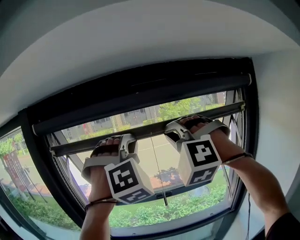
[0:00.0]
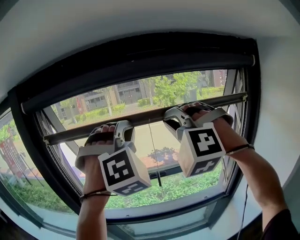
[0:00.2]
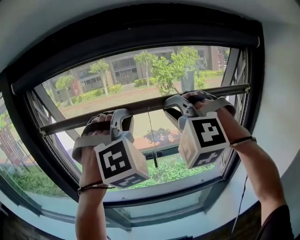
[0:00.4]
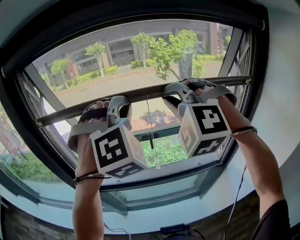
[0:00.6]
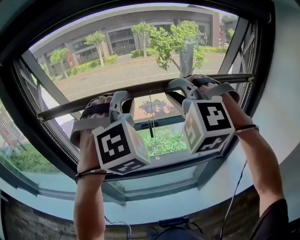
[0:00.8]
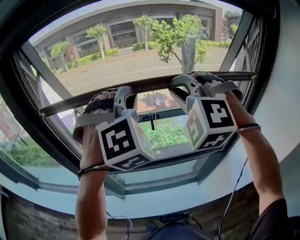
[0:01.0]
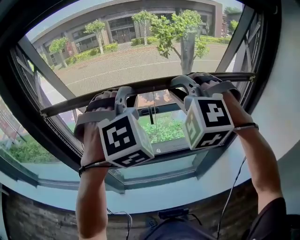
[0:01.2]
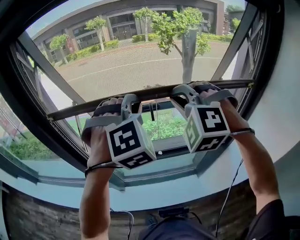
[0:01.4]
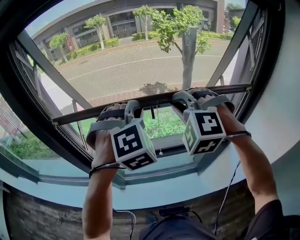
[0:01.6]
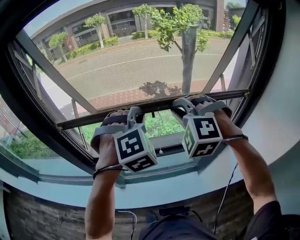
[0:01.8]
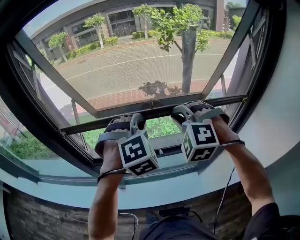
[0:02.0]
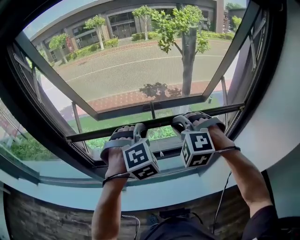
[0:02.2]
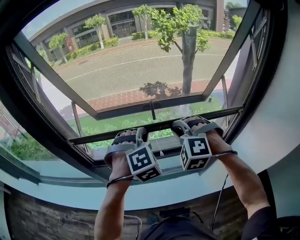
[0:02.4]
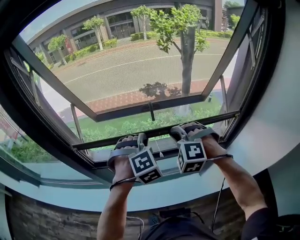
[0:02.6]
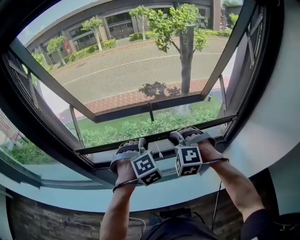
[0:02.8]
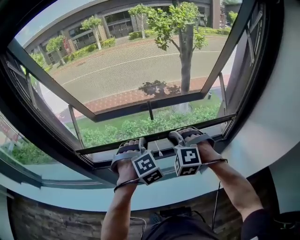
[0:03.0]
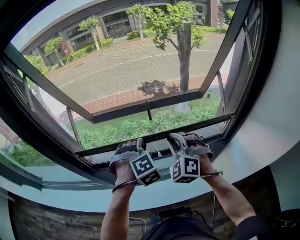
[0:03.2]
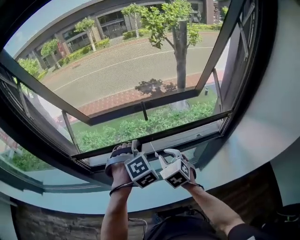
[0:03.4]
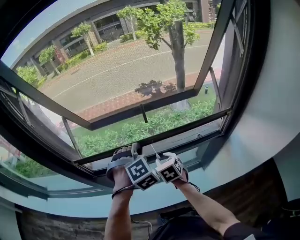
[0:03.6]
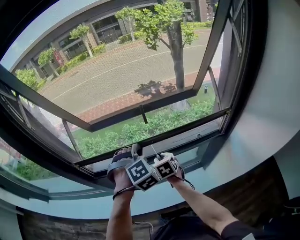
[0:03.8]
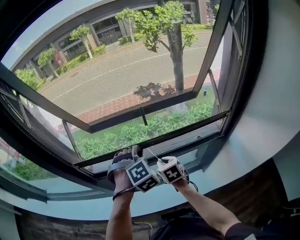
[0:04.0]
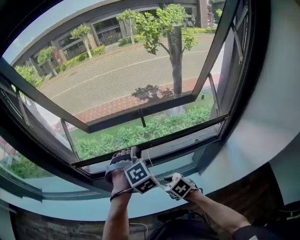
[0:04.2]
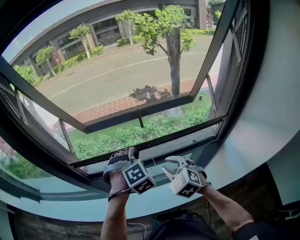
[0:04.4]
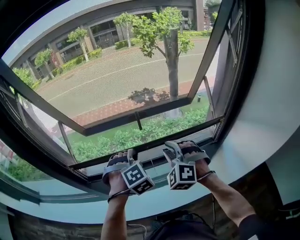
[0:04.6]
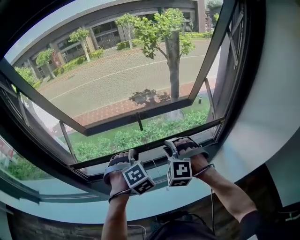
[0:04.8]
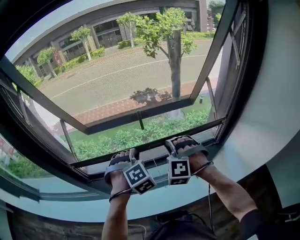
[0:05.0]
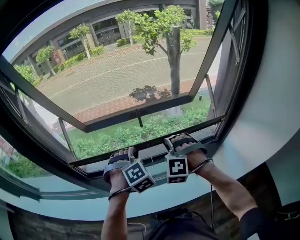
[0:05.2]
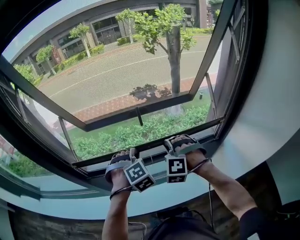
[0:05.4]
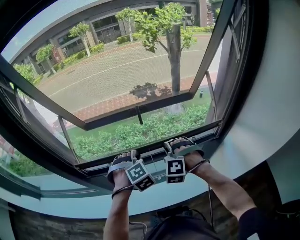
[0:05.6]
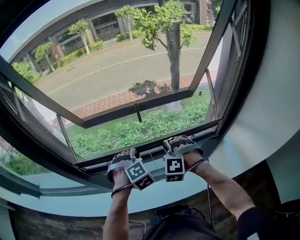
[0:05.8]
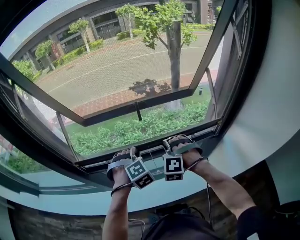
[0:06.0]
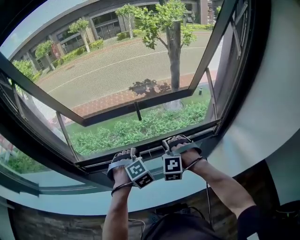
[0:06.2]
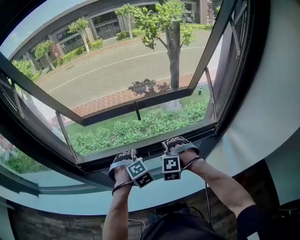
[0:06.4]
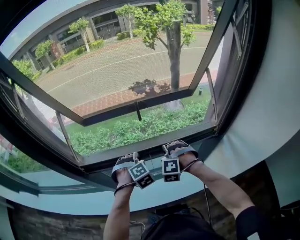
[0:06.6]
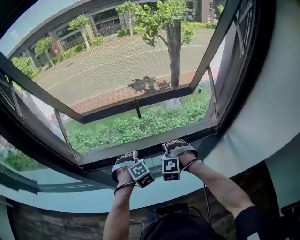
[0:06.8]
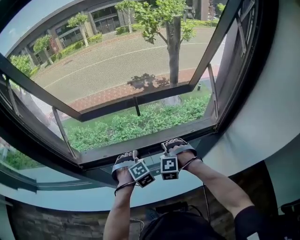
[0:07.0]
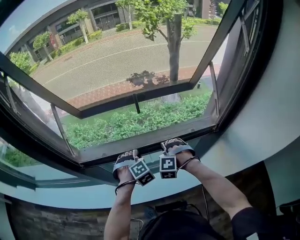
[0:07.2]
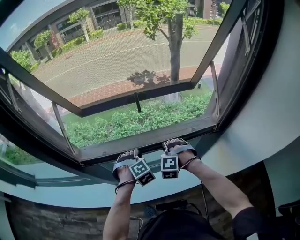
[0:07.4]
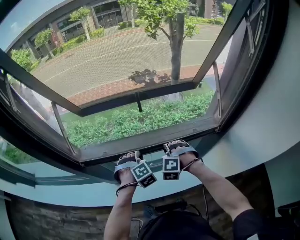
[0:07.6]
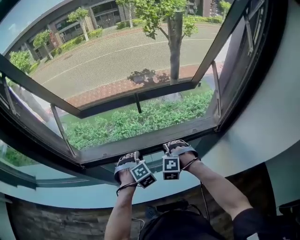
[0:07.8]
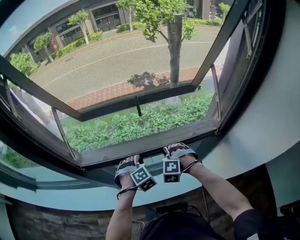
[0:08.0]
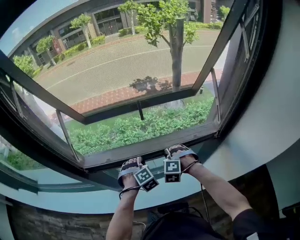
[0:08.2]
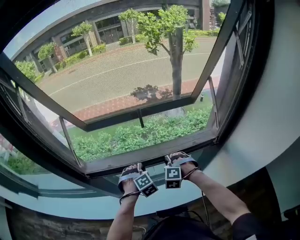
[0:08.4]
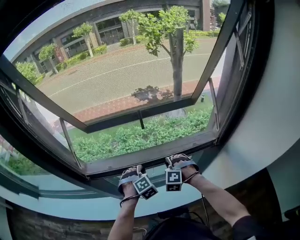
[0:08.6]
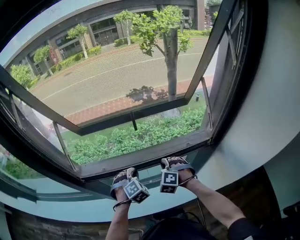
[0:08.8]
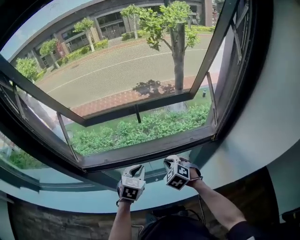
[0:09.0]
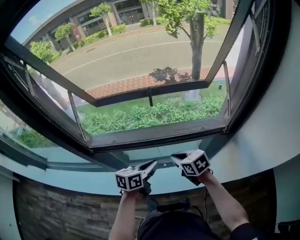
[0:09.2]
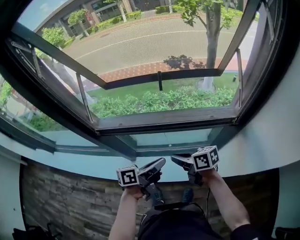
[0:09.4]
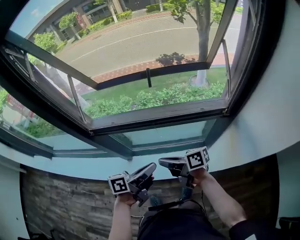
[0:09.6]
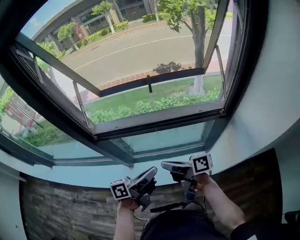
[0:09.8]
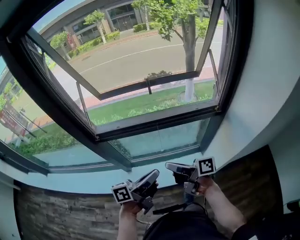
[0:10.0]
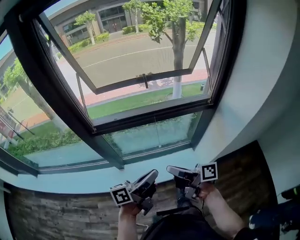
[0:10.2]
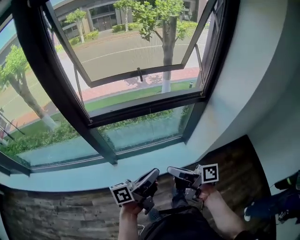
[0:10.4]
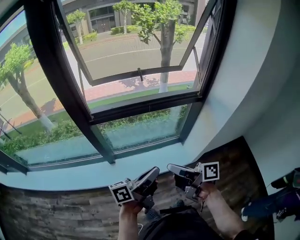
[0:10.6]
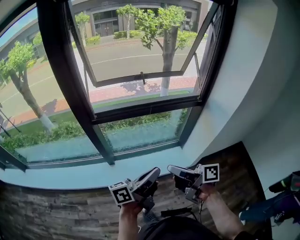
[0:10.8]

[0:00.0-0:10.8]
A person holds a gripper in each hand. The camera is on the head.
0:00.0 to 0:01.6: The grippers both shift downward by about 30 cm. The left gripper changes its angle by roughly 30 degrees, while the right gripper changes its angle by some 30 degrees.
0:01.6 to 0:03.0: Both grippers travel together downward, about 20 cm.
0:03.0 to 0:04.6: The right gripper moves roughly 15 cm downward and comes back, and opens its fingers.
0:04.6 to 0:06.2: Both grippers move downward, about 10 cm. The right gripper swivels roughly 20 degrees, and closes.
0:06.2 to 0:07.8: The two grippers go about 10 cm downward.
0:07.8 to 0:09.2: The left gripper heads backward and upward, covering roughly 10 cm, and twists some 80 degrees counterclockwise, seen from behind. Meanwhile the right gripper travels backward by some 5 cm, and rotates around the line of its fingers by approximately 70 degrees, clockwise from behind.
0:09.2 to 0:10.8: Both grippers travel together backward, approximately 35 cm. The left gripper angles its fingers upward, by about 40 degrees. The right gripper angles its fingers upward, by about 40 degrees.

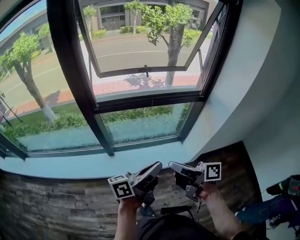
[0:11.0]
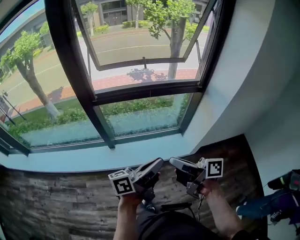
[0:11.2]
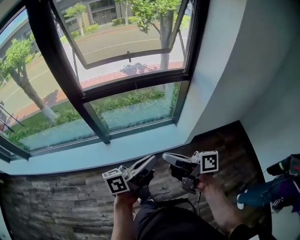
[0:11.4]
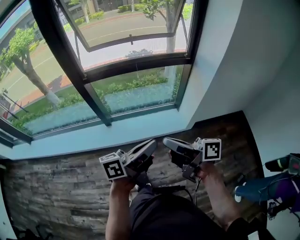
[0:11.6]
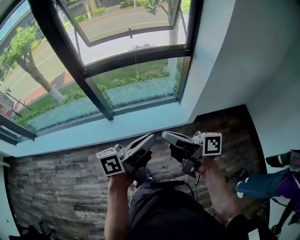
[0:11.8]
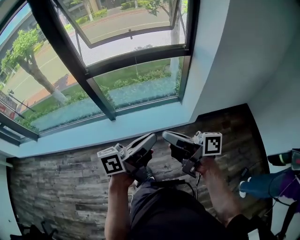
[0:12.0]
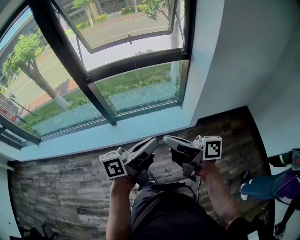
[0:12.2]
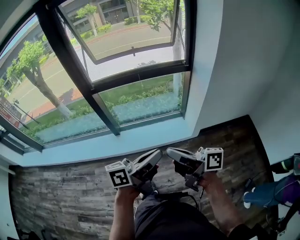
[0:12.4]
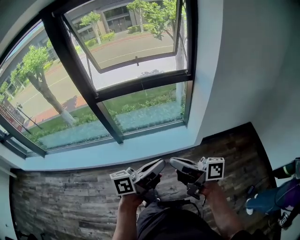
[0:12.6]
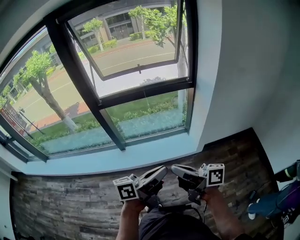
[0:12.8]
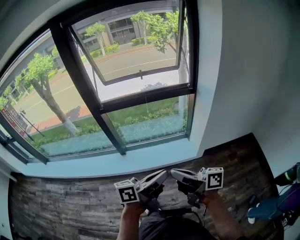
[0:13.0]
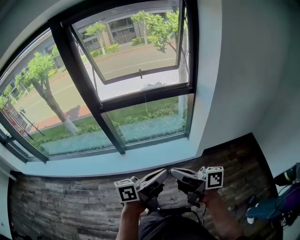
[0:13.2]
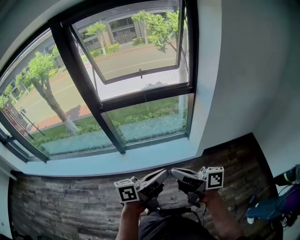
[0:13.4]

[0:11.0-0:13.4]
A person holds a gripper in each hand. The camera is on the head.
0:11.0 to 0:12.2: The two grippers go approximately 15 cm backward and to the right.
0:12.2 to 0:13.4: The grippers move only a little.

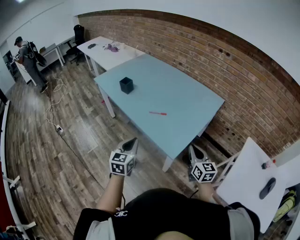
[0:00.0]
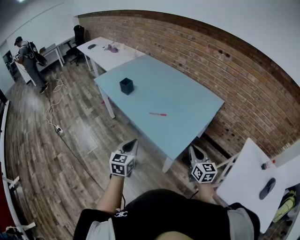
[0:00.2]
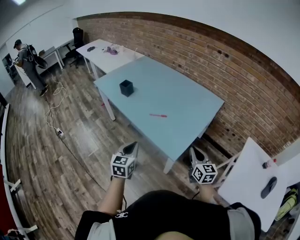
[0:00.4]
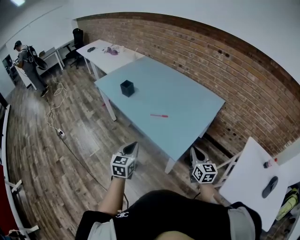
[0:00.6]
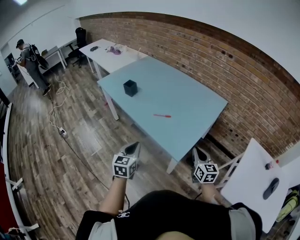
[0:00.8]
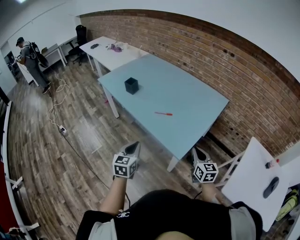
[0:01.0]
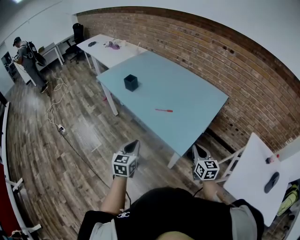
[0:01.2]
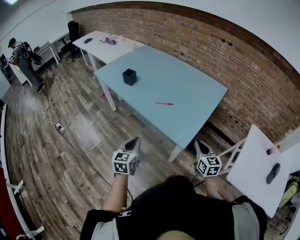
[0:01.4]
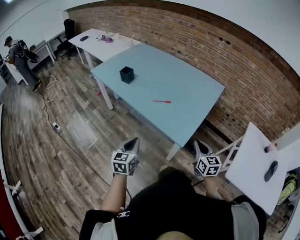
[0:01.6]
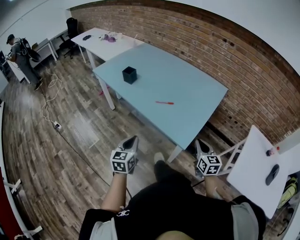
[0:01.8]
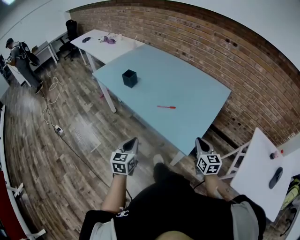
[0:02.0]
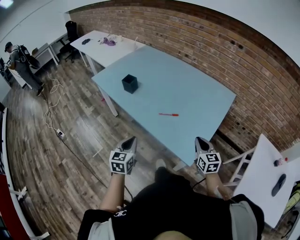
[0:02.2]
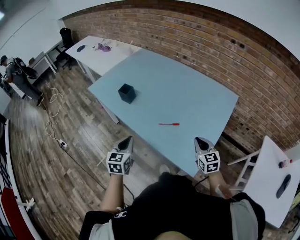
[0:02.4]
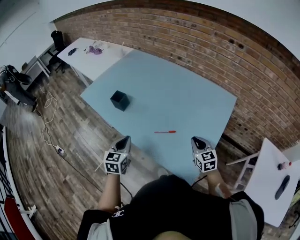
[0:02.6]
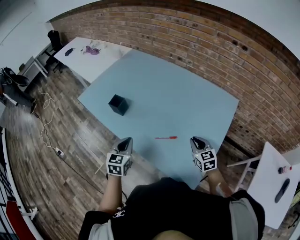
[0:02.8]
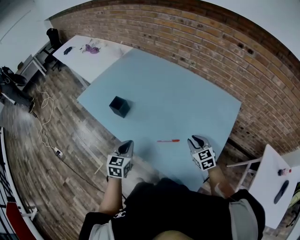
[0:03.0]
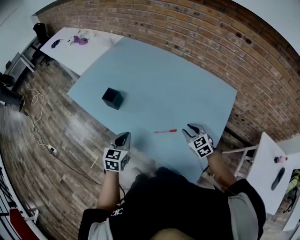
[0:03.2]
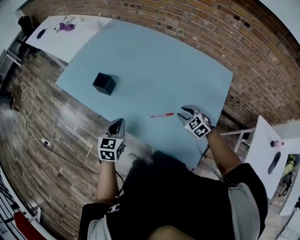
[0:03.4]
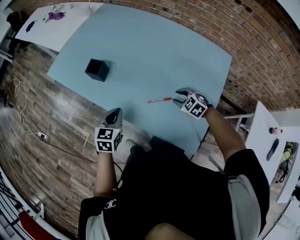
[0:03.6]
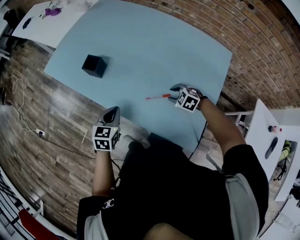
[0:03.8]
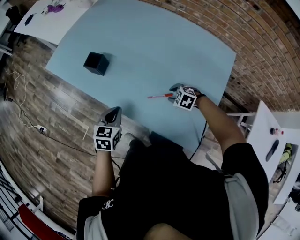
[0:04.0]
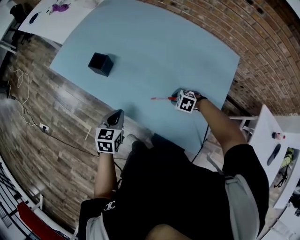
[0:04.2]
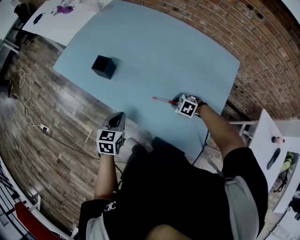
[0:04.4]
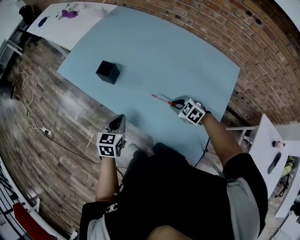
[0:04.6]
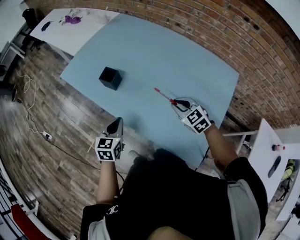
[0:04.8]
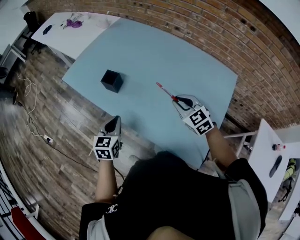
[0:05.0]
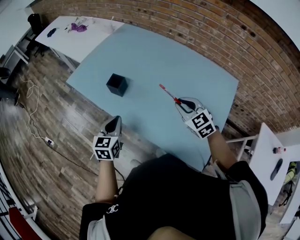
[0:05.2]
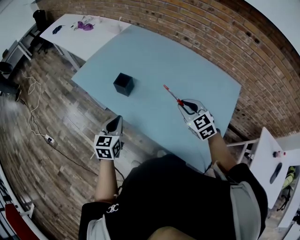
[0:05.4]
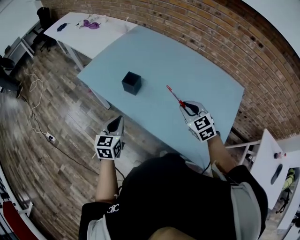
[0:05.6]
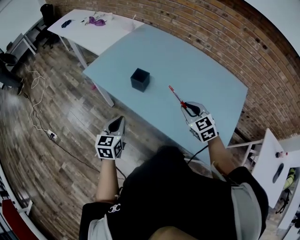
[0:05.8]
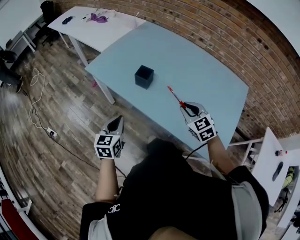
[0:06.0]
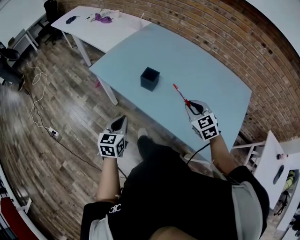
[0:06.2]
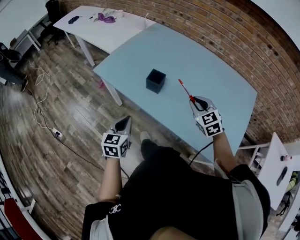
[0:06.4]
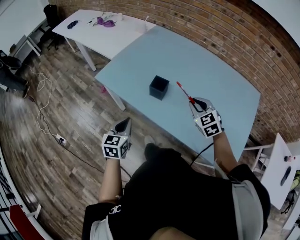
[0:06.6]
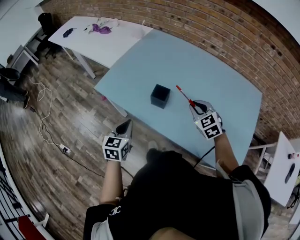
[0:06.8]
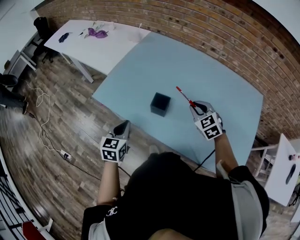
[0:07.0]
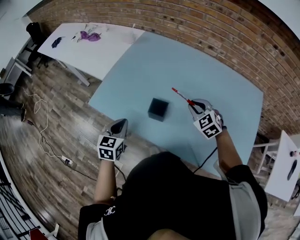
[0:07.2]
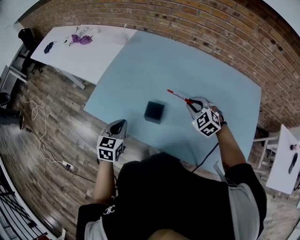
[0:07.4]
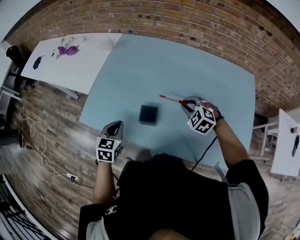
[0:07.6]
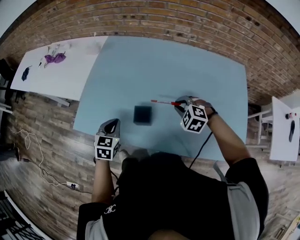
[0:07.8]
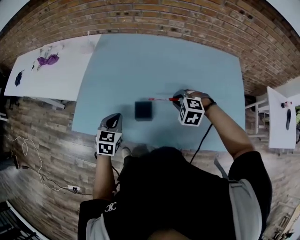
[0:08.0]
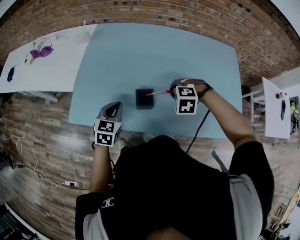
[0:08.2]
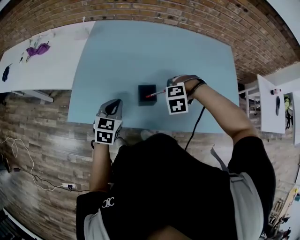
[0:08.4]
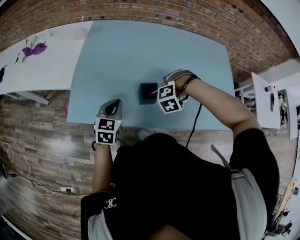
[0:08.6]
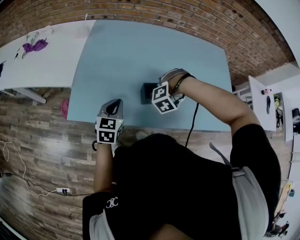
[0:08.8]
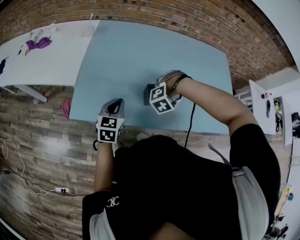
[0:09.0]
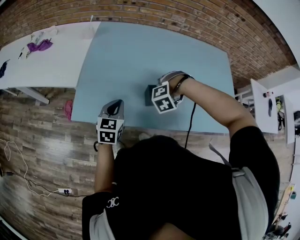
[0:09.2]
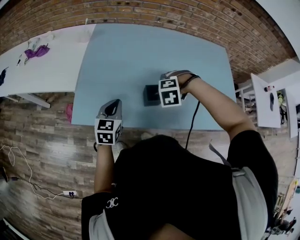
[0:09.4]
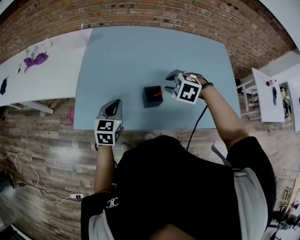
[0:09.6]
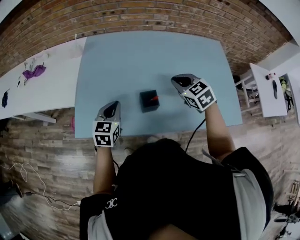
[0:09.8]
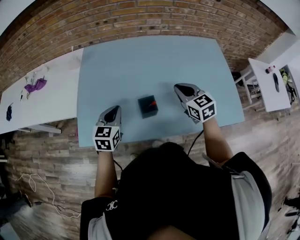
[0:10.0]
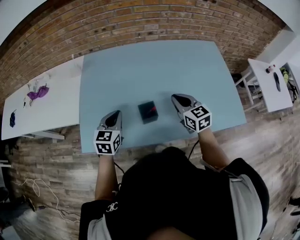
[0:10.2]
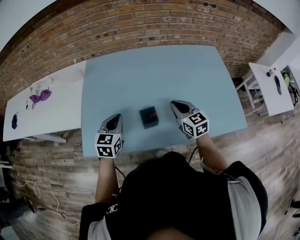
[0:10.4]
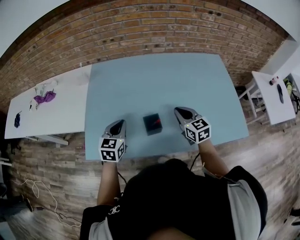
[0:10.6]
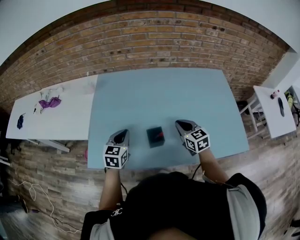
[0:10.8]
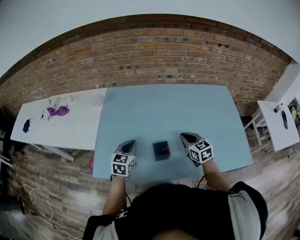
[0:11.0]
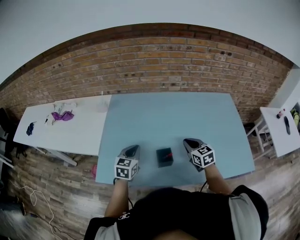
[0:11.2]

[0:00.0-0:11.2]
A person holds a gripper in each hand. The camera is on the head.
0:00.0 to 0:01.6: The right gripper shifts by some 5 cm; the left gripper heads to the left and downward, covering some 10 cm.
0:01.6 to 0:03.2: The grippers both shift forward by some 35 cm. The right gripper swivels roughly 30 degrees, and opens up.
0:03.2 to 0:04.8: The right gripper goes about 10 cm to the left, and moves approximately 10 cm downward and comes back.
0:04.8 to 0:06.4: The right gripper travels to the left and upward by approximately 15 cm, while the left gripper shifts about 20 cm to the left.
0:06.4 to 0:08.0: The right gripper moves forward and downward, approximately 15 cm, and points its fingers some 30 degrees further downward, while the left gripper shifts approximately 25 cm forward, and rotates about 40 degrees.
0:08.0 to 0:09.6: The right gripper shifts by about 10 cm. Meanwhile the left gripper shifts by approximately 5 cm.
0:09.6 to 0:11.2: The left gripper moves forward, approximately 5 cm; the right gripper travels to the right by some 5 cm, angles its fingers upward, by some 40 degrees, and closes up.
